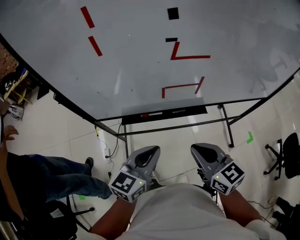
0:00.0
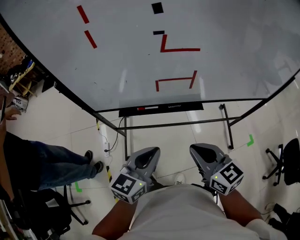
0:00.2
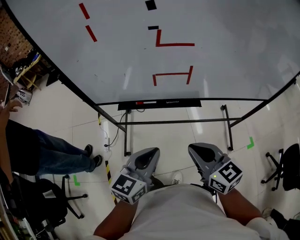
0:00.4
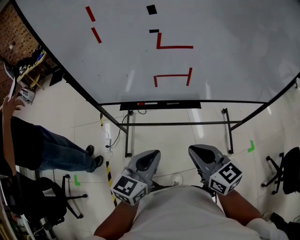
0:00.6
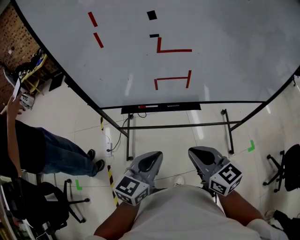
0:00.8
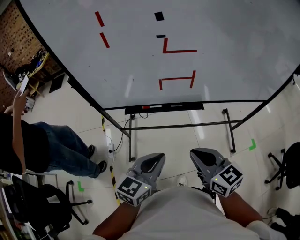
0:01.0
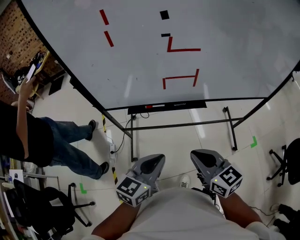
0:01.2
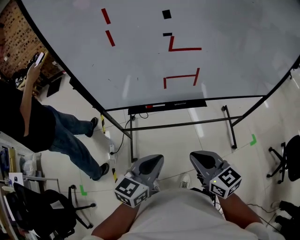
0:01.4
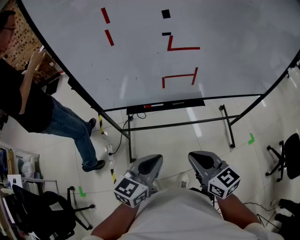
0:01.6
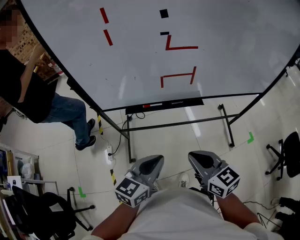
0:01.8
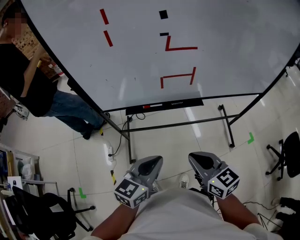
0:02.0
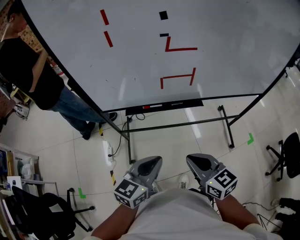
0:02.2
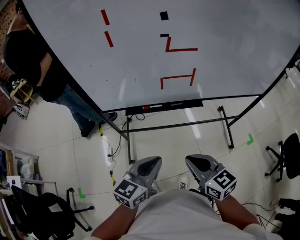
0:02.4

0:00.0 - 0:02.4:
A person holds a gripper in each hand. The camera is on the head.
0:00.0 - 0:01.2: The two grippers go approximately 10 cm backward.
0:01.2 - 0:02.4: The grippers make only small movements.

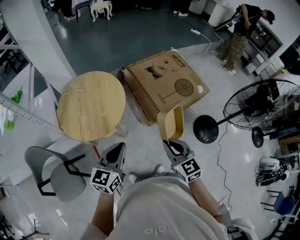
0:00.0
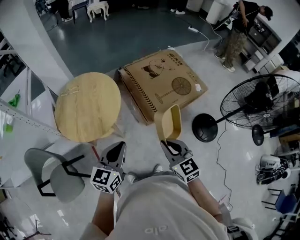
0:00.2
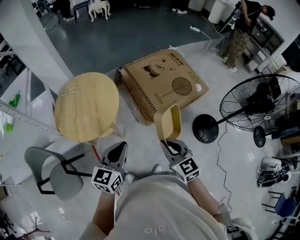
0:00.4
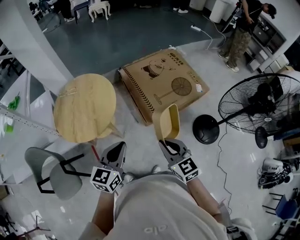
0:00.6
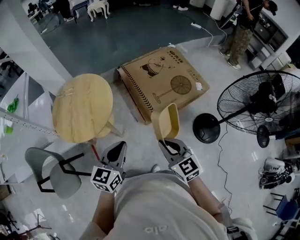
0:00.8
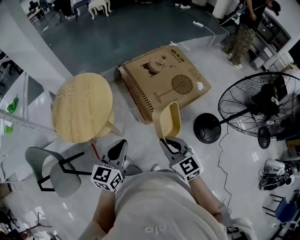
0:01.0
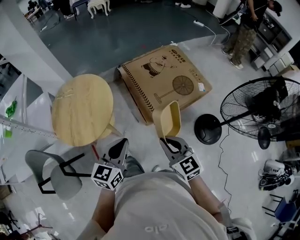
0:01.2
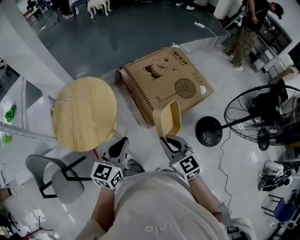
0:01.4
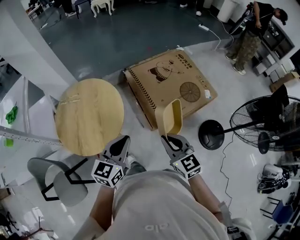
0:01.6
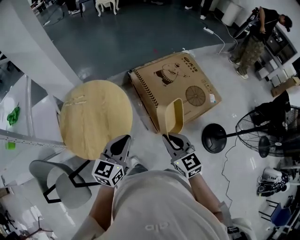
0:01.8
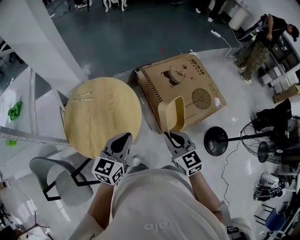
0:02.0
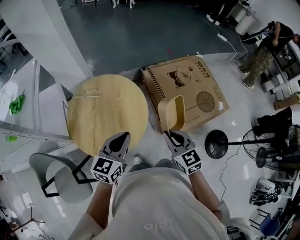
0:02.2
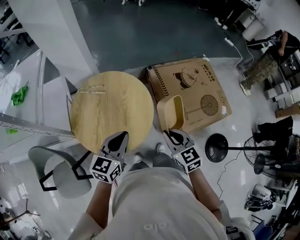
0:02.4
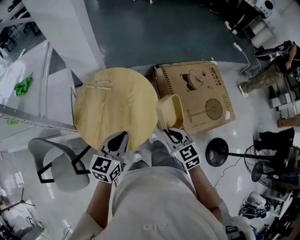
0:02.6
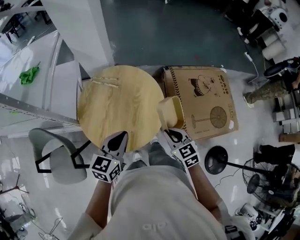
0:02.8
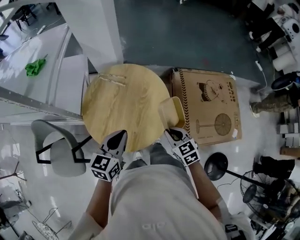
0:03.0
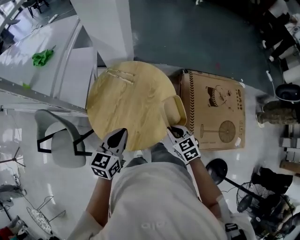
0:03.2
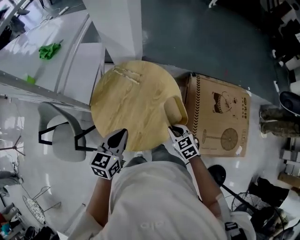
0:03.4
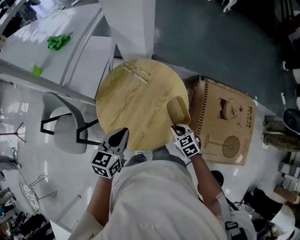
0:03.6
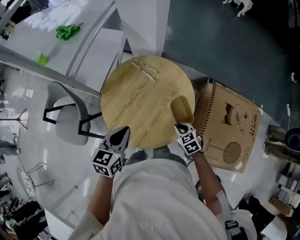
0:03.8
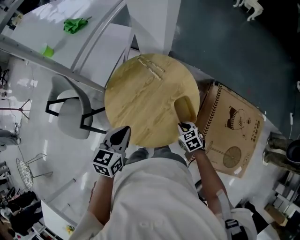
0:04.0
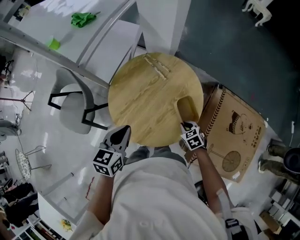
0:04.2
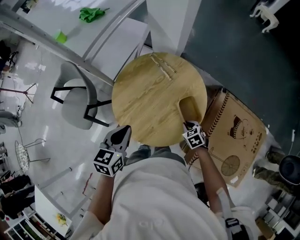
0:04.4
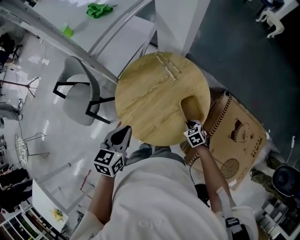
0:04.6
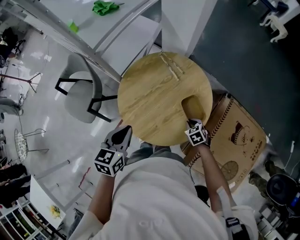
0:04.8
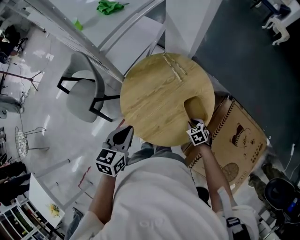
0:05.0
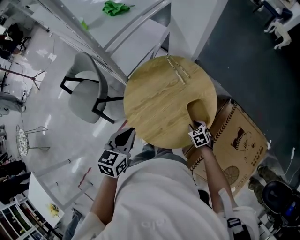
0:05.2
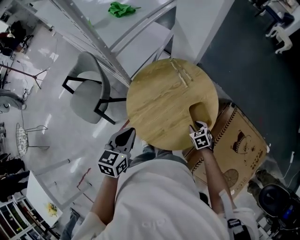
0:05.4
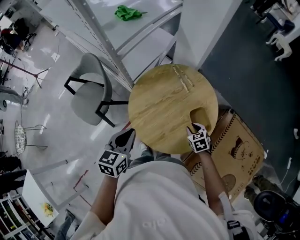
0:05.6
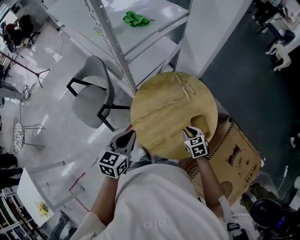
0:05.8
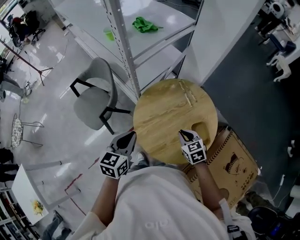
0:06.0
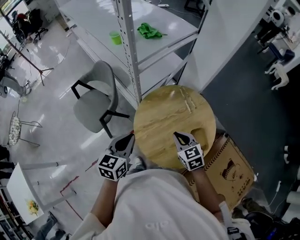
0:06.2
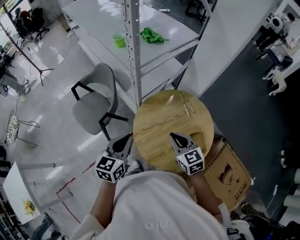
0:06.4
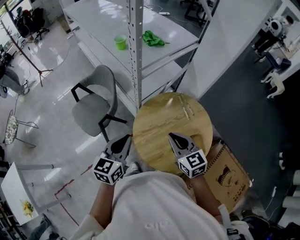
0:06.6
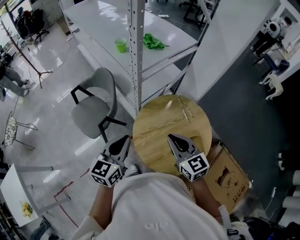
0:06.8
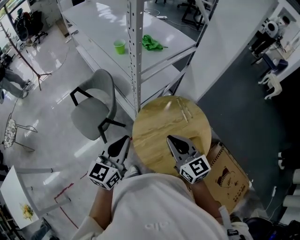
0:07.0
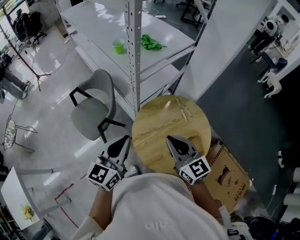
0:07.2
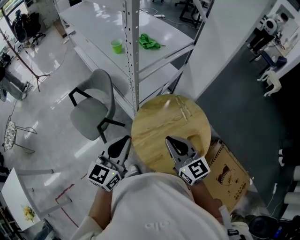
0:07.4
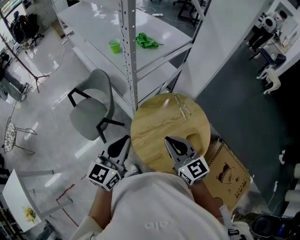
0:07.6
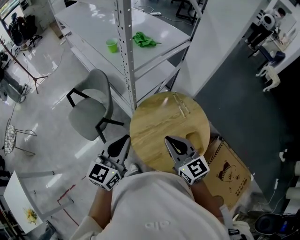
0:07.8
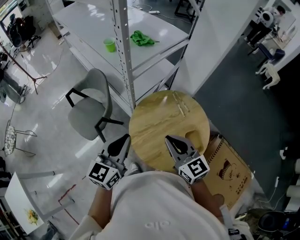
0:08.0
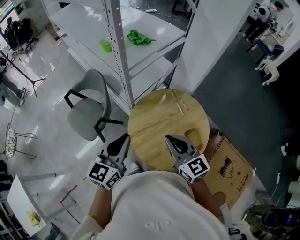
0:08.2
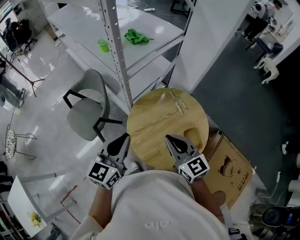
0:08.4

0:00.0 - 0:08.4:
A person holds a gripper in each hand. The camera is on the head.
0:00.0 - 0:01.4: The two grippers go about 15 cm forward and to the right.
0:01.4 - 0:02.8: Both grippers move to the left and forward, about 35 cm. The left gripper swivels approximately 20 degrees, while the right gripper turns by roughly 30 degrees.
0:02.8 - 0:04.2: The right gripper travels downward by some 20 cm, and turns by some 40 degrees. The left gripper changes place by roughly 10 cm, and swivels about 40 degrees.
0:04.2 - 0:05.6: The right gripper travels forward and to the left by roughly 10 cm, and opens. Meanwhile the left gripper is displaced to the left by some 10 cm.
0:05.6 - 0:07.0: The right gripper moves upward and to the left, about 35 cm, angles its fingers upward, by some 50 degrees, and closes. The left gripper moves upward and to the left, roughly 15 cm, and changes its angle by some 30 degrees.
0:07.0 - 0:08.4: The grippers move only a little.

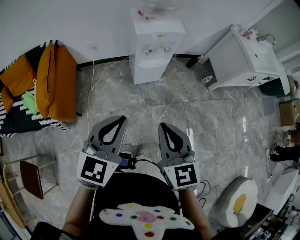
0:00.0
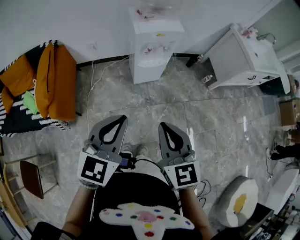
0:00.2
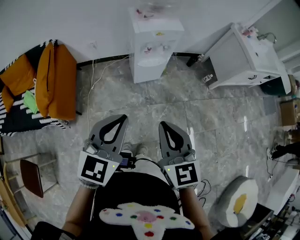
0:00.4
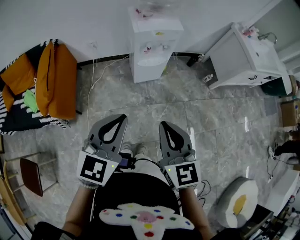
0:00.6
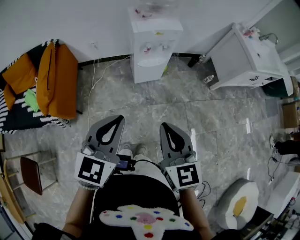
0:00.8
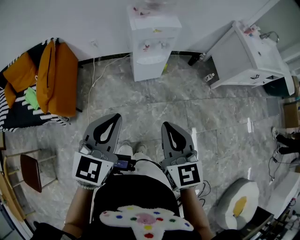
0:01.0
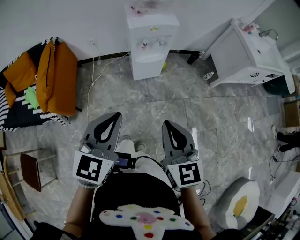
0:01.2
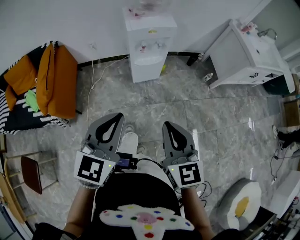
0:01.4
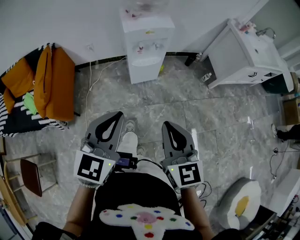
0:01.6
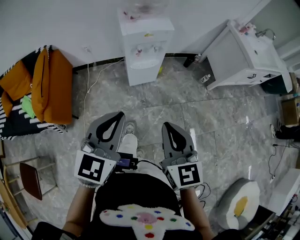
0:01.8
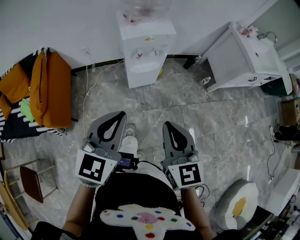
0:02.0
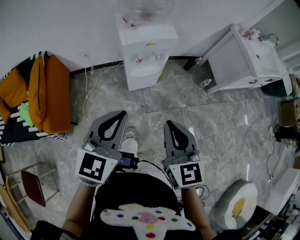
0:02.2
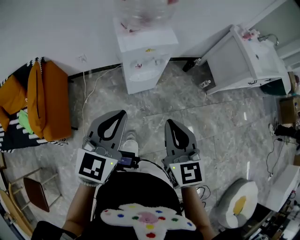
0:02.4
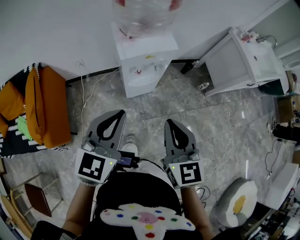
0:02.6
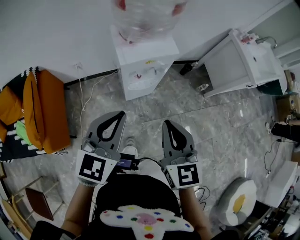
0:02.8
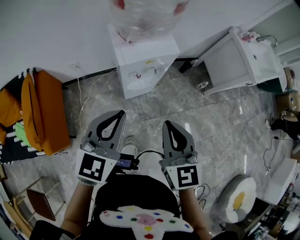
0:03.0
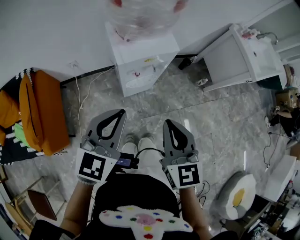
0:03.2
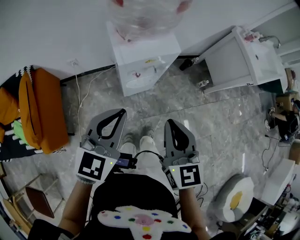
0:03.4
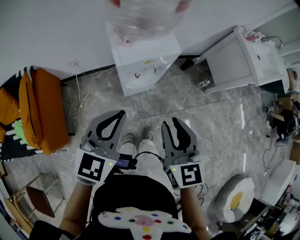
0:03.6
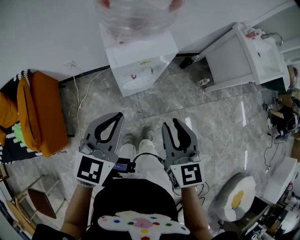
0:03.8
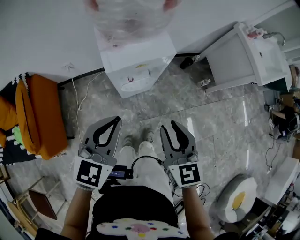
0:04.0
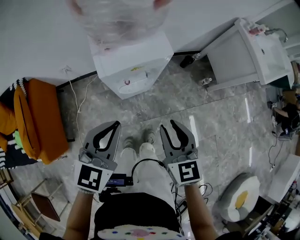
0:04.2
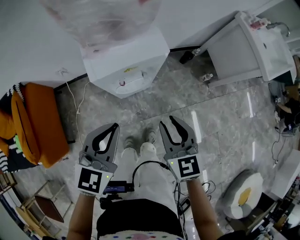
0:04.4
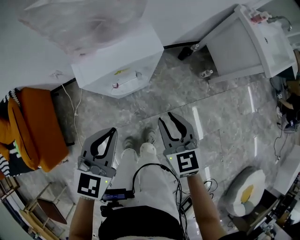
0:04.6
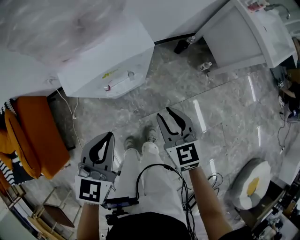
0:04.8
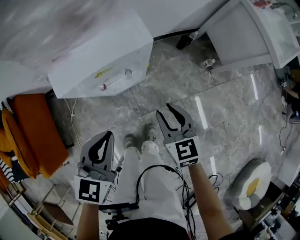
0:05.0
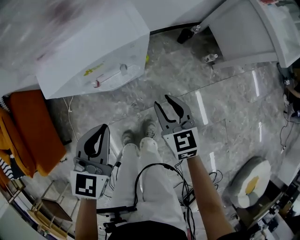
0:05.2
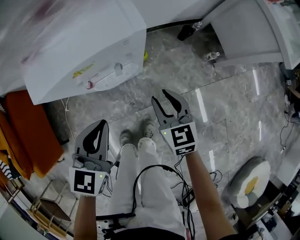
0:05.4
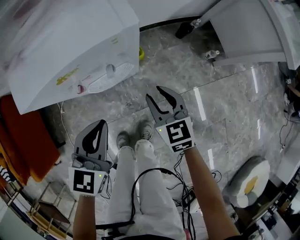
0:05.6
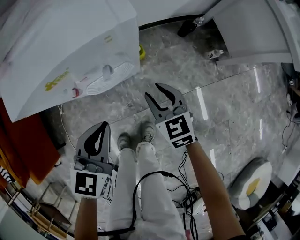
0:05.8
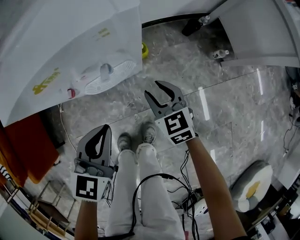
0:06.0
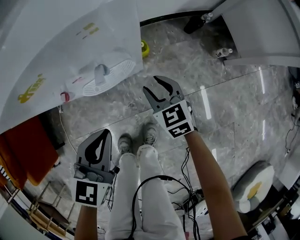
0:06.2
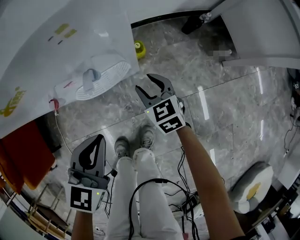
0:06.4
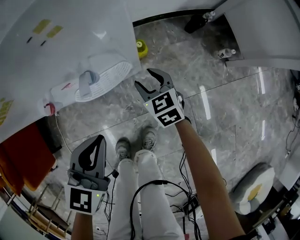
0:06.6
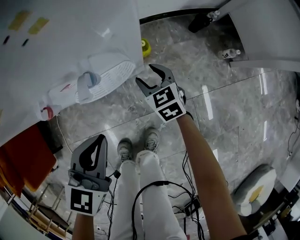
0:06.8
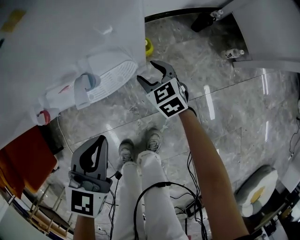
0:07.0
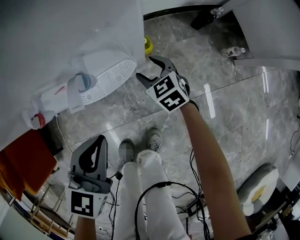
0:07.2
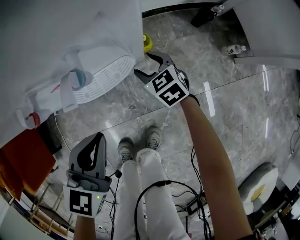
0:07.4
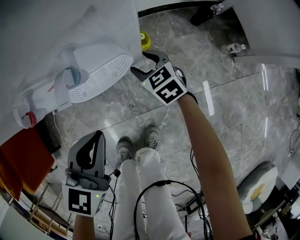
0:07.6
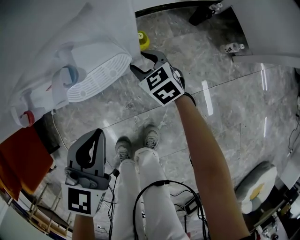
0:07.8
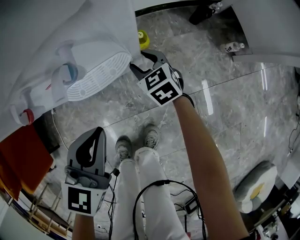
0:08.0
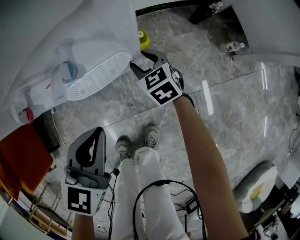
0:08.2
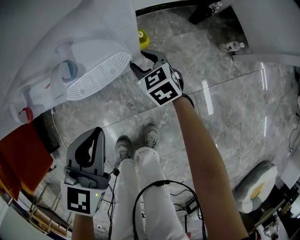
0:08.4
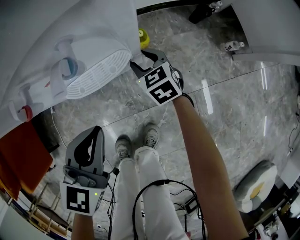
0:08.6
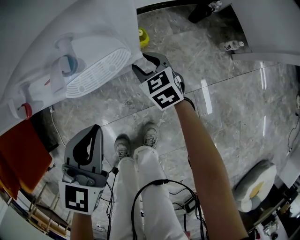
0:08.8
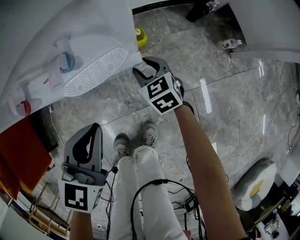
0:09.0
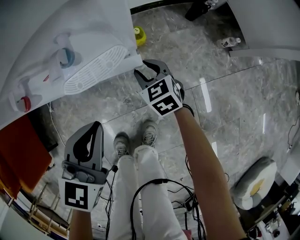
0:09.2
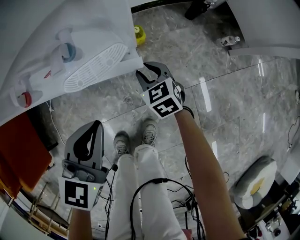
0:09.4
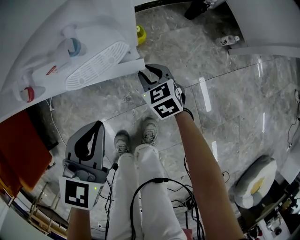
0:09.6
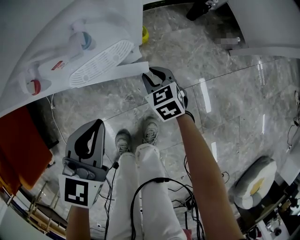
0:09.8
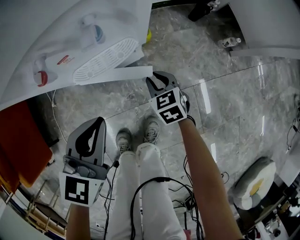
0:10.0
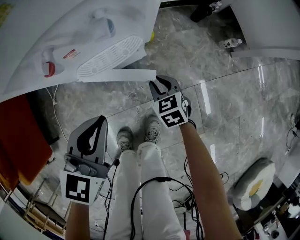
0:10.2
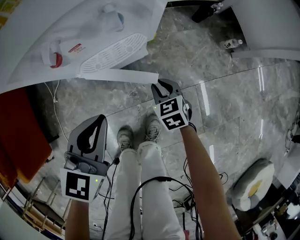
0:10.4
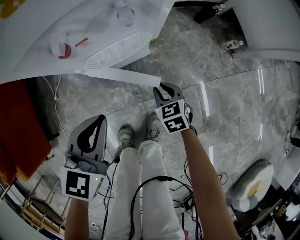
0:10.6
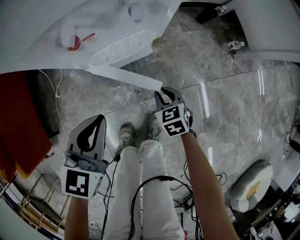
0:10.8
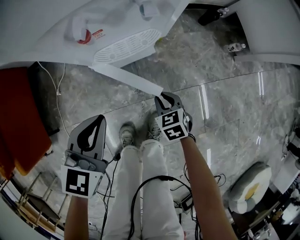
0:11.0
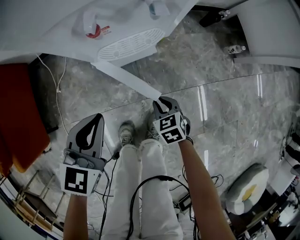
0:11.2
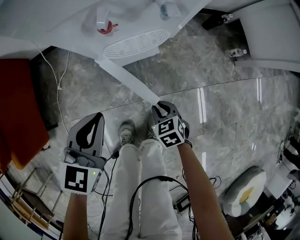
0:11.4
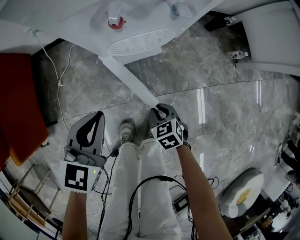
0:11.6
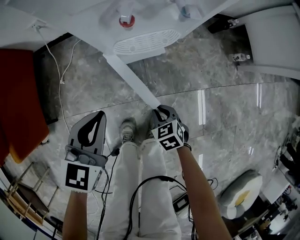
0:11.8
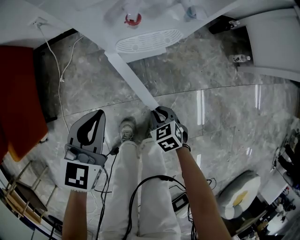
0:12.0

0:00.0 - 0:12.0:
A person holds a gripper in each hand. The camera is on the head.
0:00.0 - 0:01.6: The grippers both shift to the right by roughly 5 cm.
0:01.6 - 0:03.0: The two grippers go roughly 25 cm forward.
0:03.0 - 0:04.4: Both grippers move downward, forward and to the right, approximately 15 cm. The right gripper opens.
0:04.4 - 0:06.0: The two grippers go approximately 30 cm downward.
0:06.0 - 0:07.6: The left gripper shifts about 10 cm downward. Meanwhile the right gripper is displaced downward and forward by some 20 cm, and opens its fingers.
0:07.6 - 0:09.0: There are only small adjustments of the grippers.
0:09.0 - 0:10.4: The left gripper moves roughly 5 cm, while the right gripper moves backward, about 10 cm.
0:10.4 - 0:12.0: The left gripper heads to the left, covering roughly 10 cm. Meanwhile the right gripper heads backward and to the left, covering roughly 15 cm.

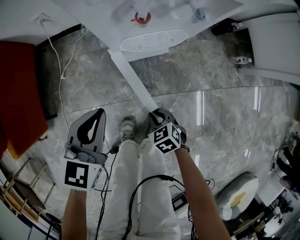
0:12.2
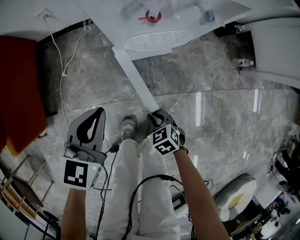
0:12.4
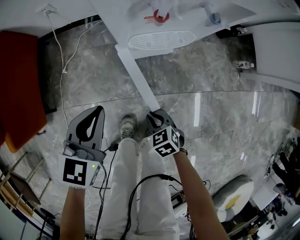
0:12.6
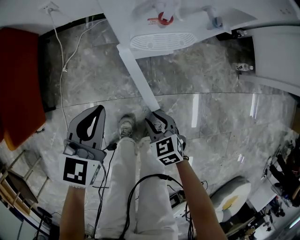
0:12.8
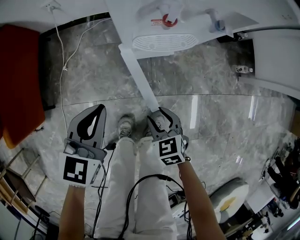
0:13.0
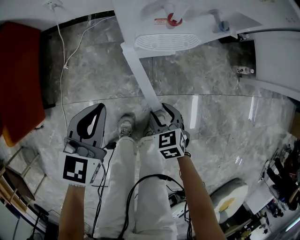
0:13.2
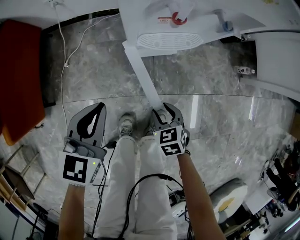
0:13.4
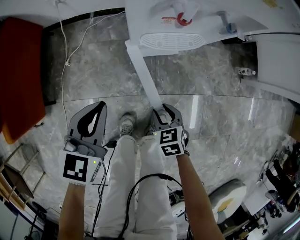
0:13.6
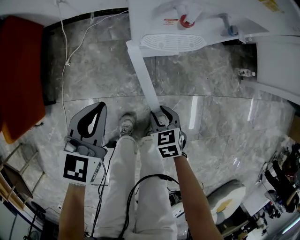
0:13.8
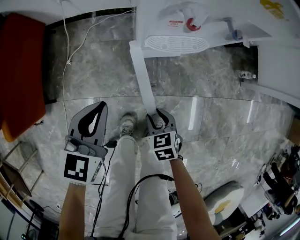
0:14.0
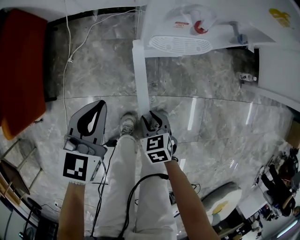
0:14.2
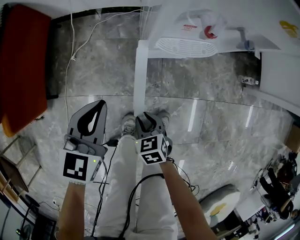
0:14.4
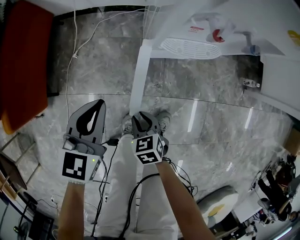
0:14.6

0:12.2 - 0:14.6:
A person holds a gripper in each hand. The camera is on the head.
0:12.2 - 0:13.4: The right gripper opens its fingers.
0:13.4 - 0:14.6: The left gripper shifts some 5 cm to the left. The right gripper goes roughly 15 cm to the left.
